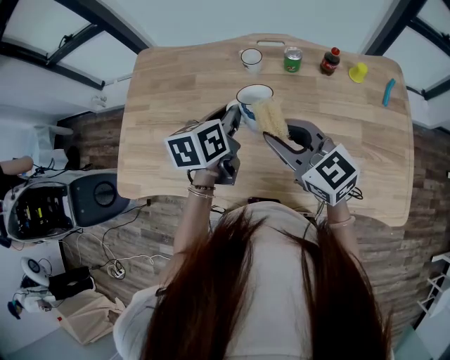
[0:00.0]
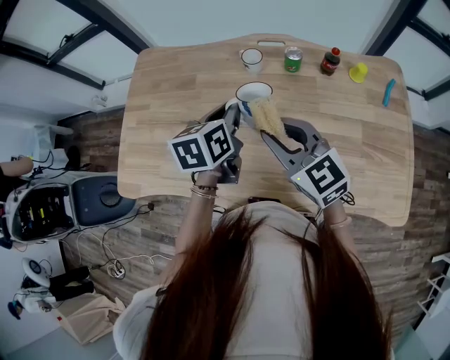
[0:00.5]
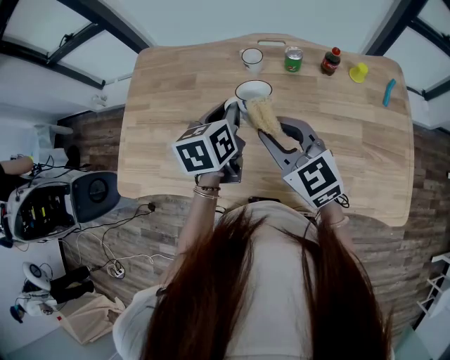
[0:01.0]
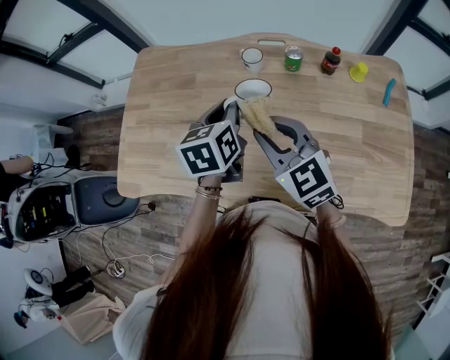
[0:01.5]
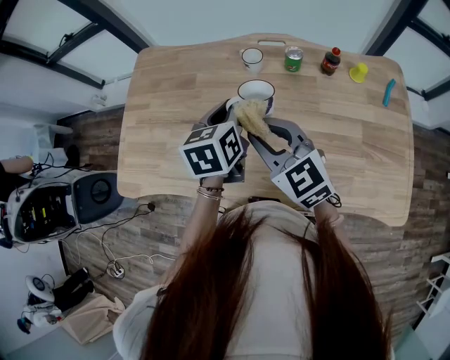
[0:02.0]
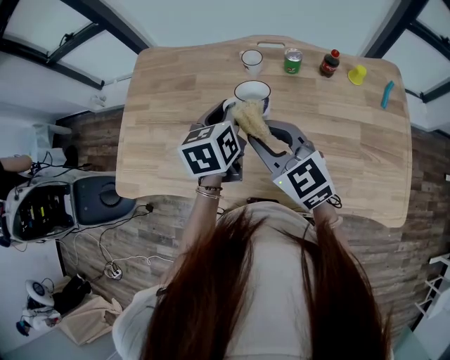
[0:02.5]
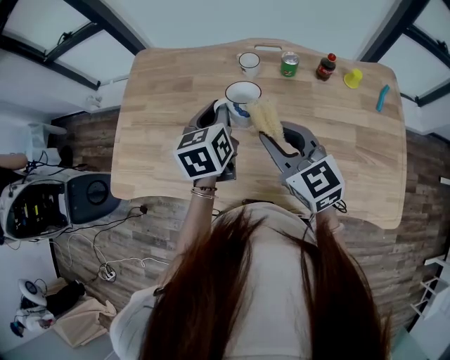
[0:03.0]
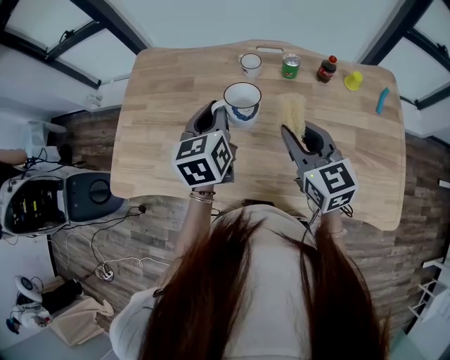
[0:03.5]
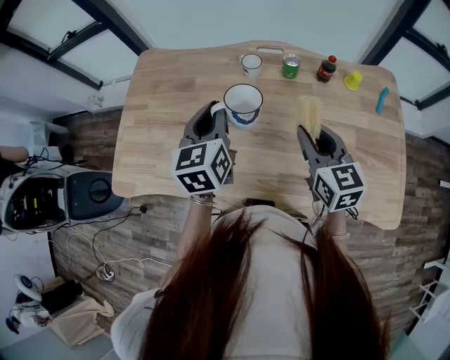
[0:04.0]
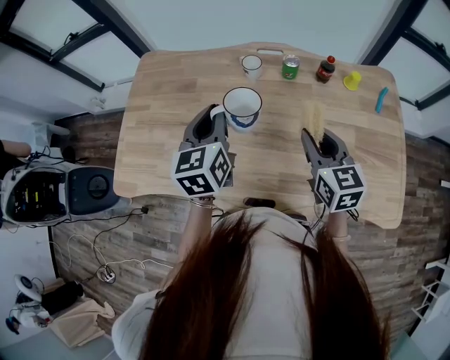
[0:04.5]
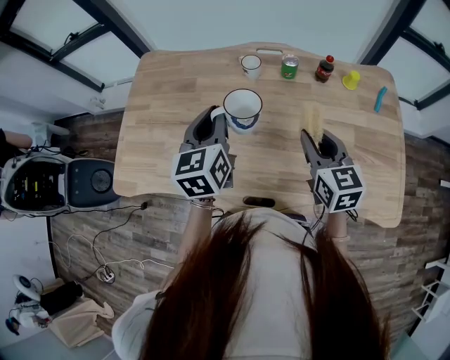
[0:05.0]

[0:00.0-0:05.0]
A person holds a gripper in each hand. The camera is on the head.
0:00.0 to 0:02.5: The grippers stay close to where they were, moving slightly.
0:02.5 to 0:05.0: The right gripper heads to the right, covering some 15 cm, and changes its angle by some 30 degrees, while the left gripper moves some 5 cm.

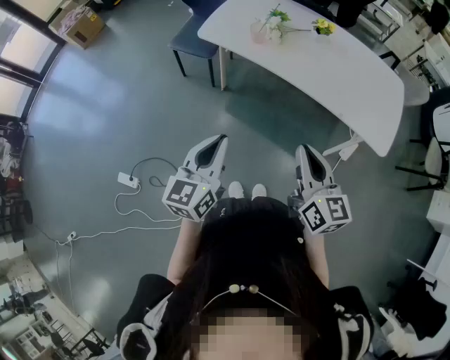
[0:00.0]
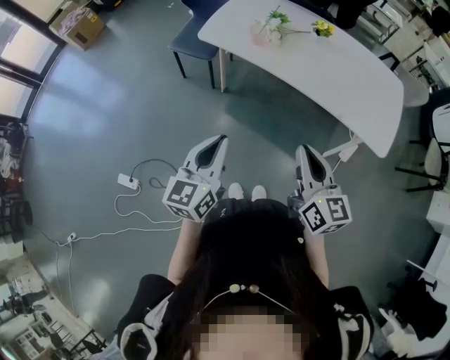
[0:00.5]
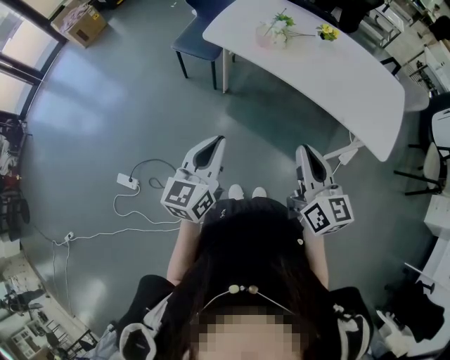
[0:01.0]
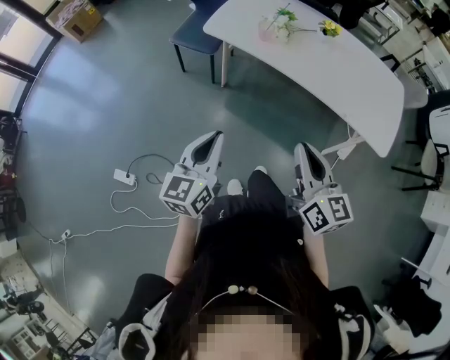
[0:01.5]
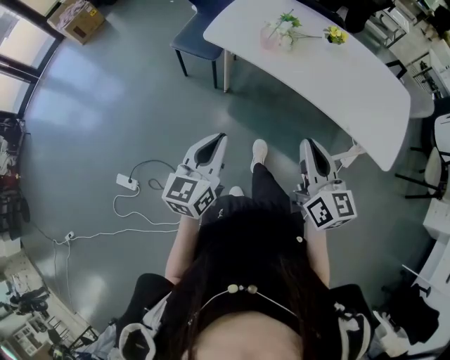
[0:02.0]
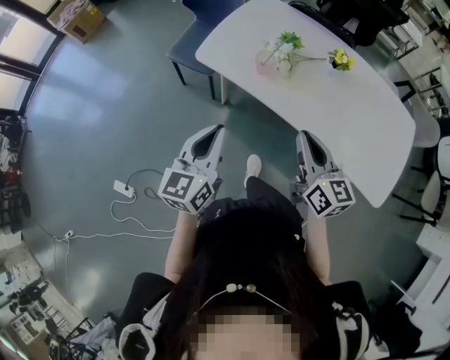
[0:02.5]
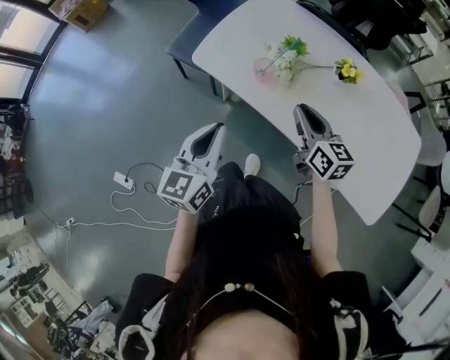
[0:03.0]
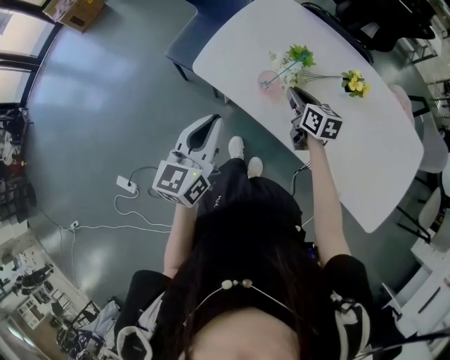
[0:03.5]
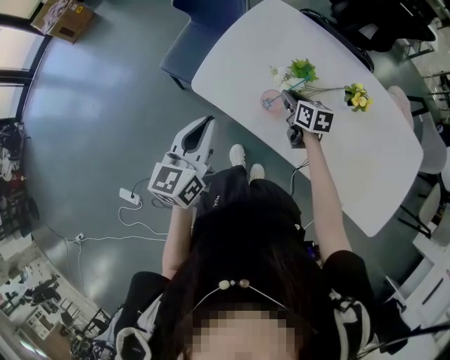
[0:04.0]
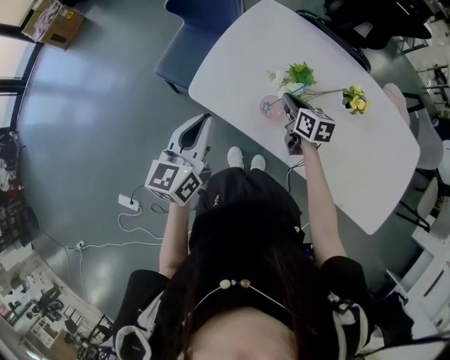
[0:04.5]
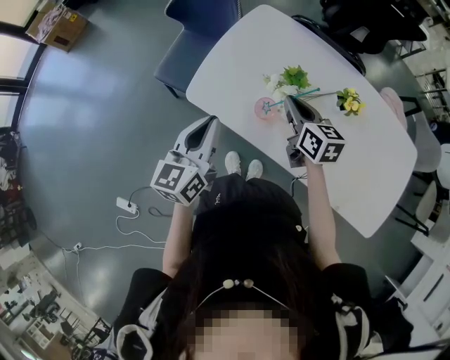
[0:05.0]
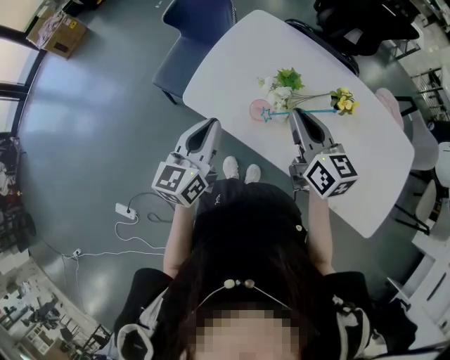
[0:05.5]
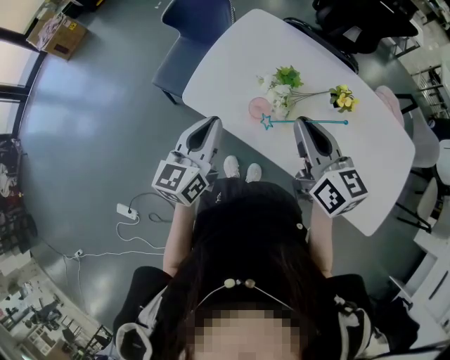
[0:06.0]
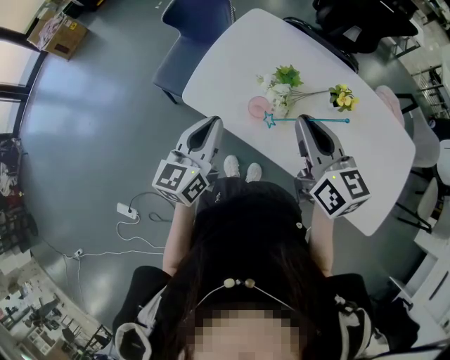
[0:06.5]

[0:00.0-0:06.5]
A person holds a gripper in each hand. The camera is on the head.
0:00.0 to 0:02.0: Both grippers move forward, some 5 cm.
0:02.0 to 0:04.5: The two grippers travel together, forward, some 50 cm. The right gripper moves downward, roughly 20 cm, and turns by roughly 30 degrees.
0:04.5 to 0:06.5: The left gripper heads to the right, covering approximately 5 cm. Meanwhile the right gripper moves upward and backward, about 25 cm, and rotates some 20 degrees.

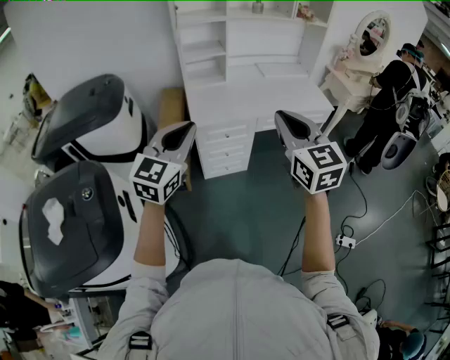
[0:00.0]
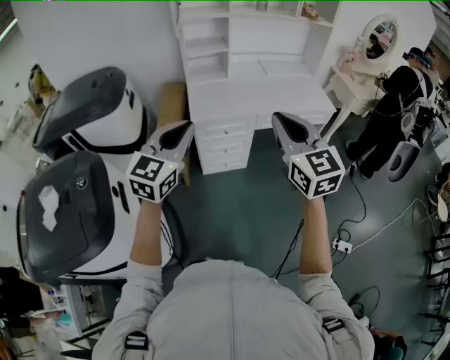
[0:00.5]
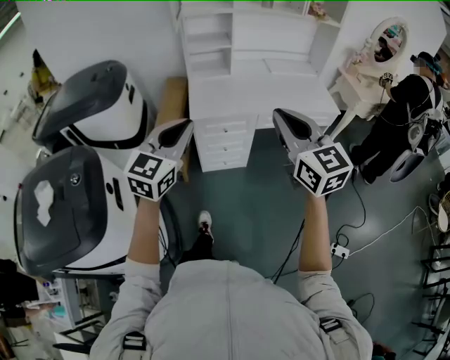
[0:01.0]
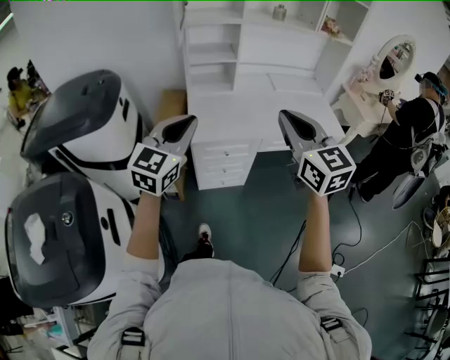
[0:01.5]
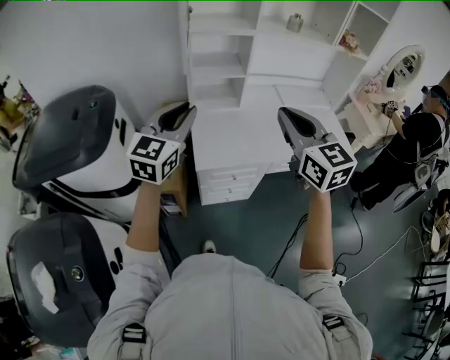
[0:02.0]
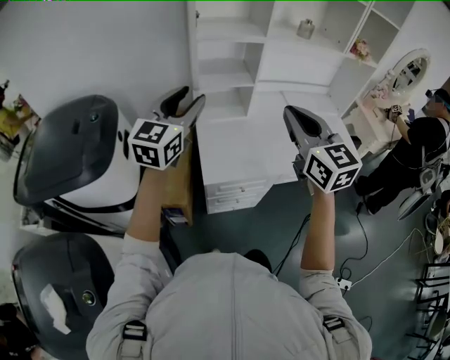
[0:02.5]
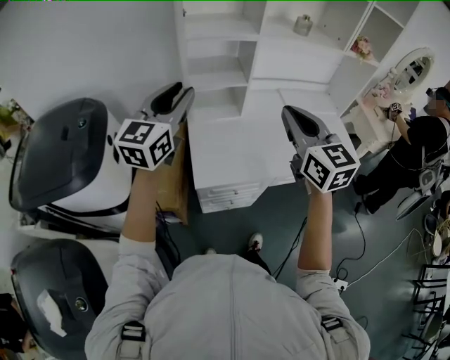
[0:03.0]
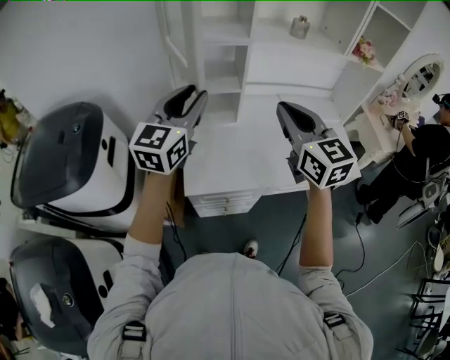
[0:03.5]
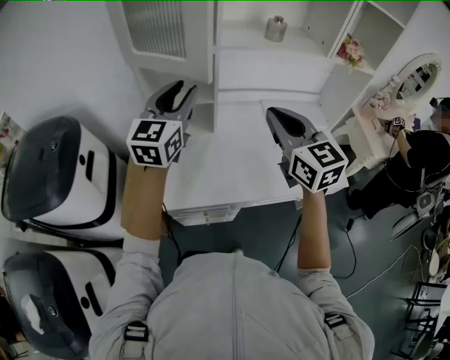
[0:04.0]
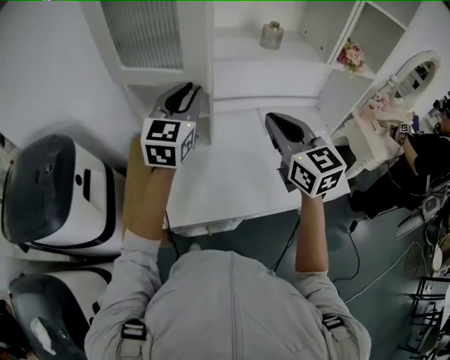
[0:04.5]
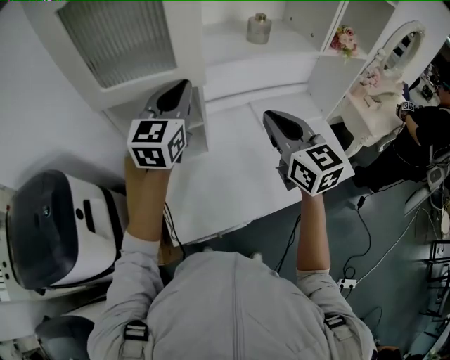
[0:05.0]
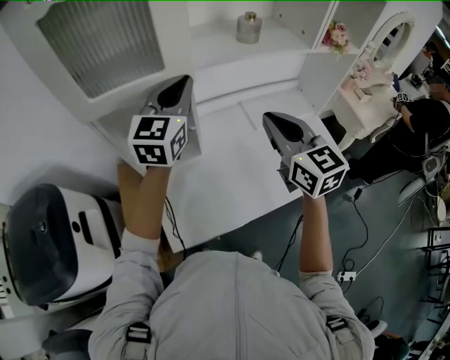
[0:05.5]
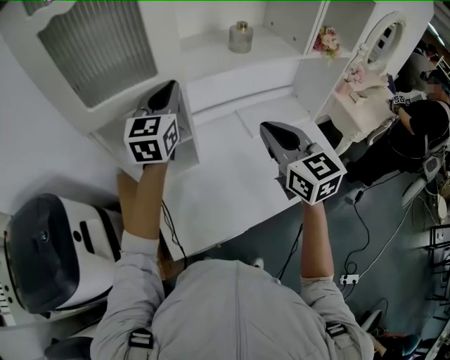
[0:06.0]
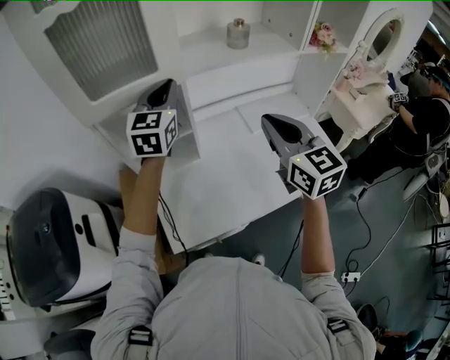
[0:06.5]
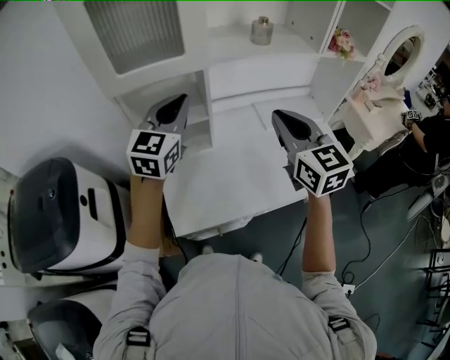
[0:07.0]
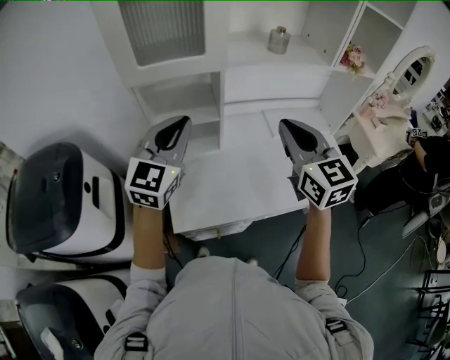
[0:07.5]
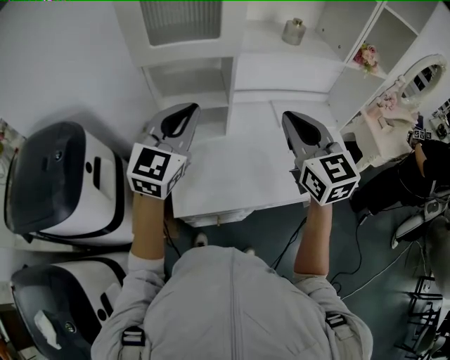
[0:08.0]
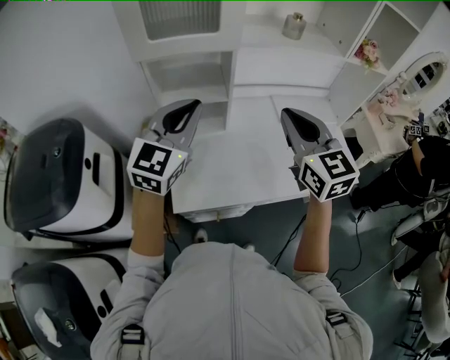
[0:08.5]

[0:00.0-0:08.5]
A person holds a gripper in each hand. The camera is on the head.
0:00.0 to 0:02.0: The grippers both shift forward by some 30 cm.
0:02.0 to 0:04.0: Both grippers travel together forward and to the right, some 25 cm.
0:04.0 to 0:06.5: The left gripper shifts some 20 cm forward, and closes its fingers, while the right gripper shifts approximately 10 cm forward.
0:06.5 to 0:08.5: The right gripper is displaced backward and to the left by roughly 10 cm. Meanwhile the left gripper goes roughly 20 cm backward.

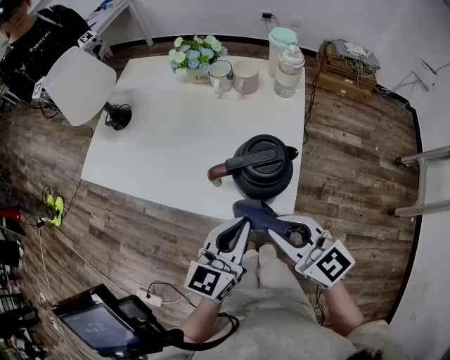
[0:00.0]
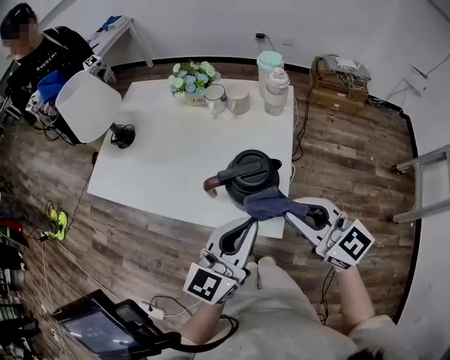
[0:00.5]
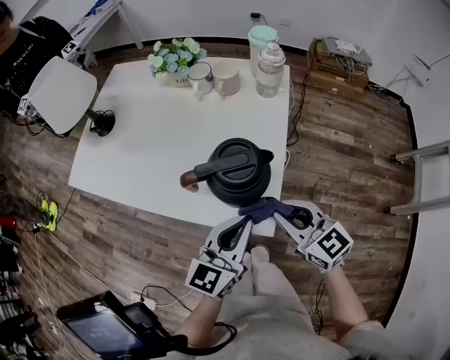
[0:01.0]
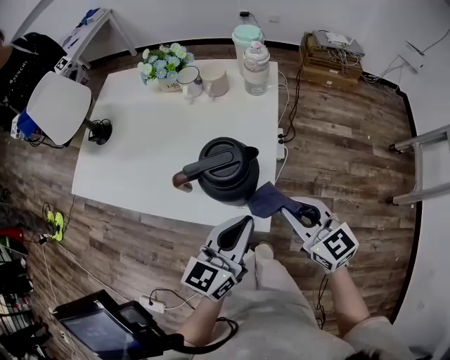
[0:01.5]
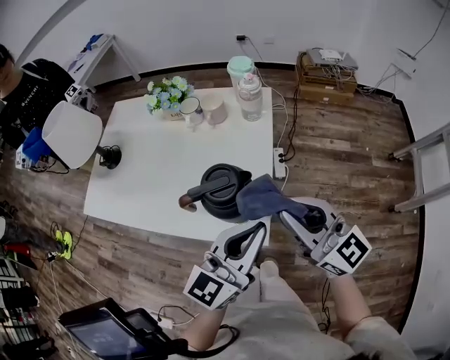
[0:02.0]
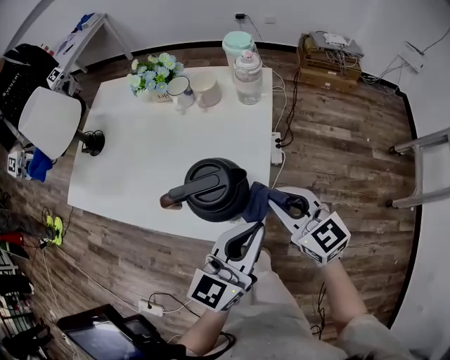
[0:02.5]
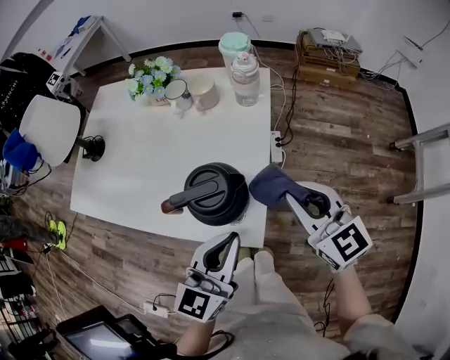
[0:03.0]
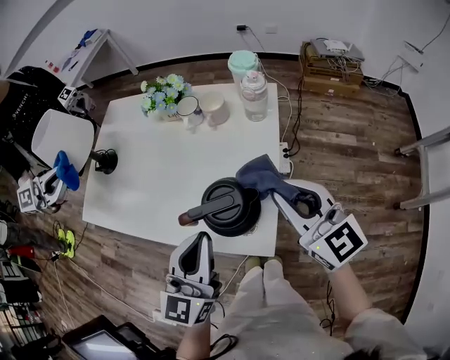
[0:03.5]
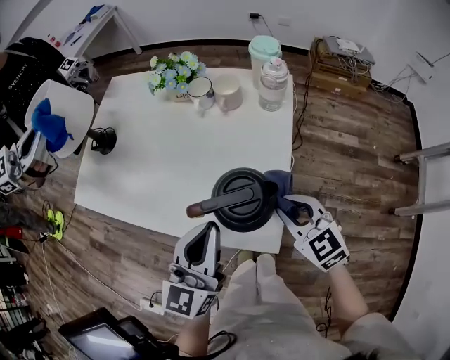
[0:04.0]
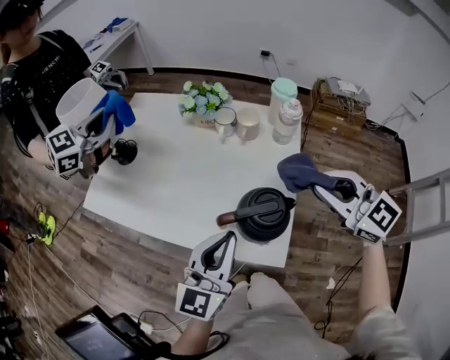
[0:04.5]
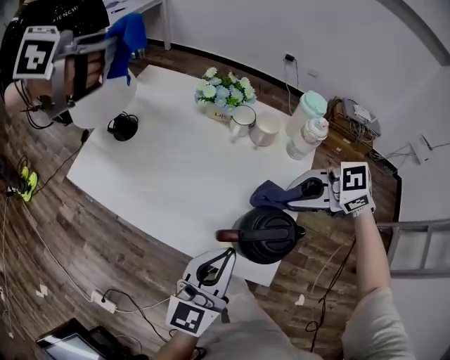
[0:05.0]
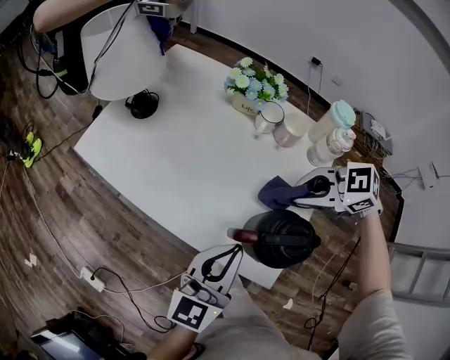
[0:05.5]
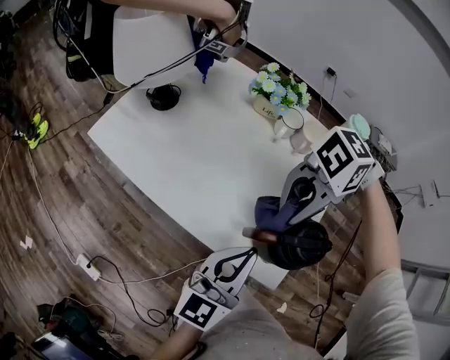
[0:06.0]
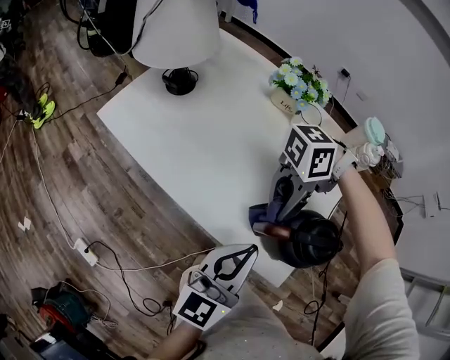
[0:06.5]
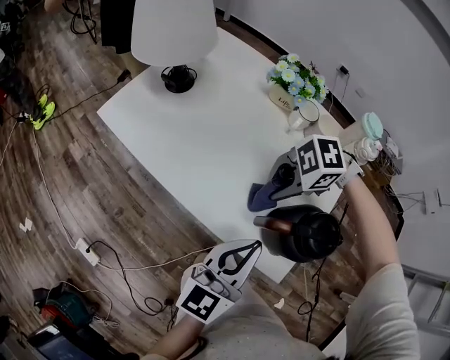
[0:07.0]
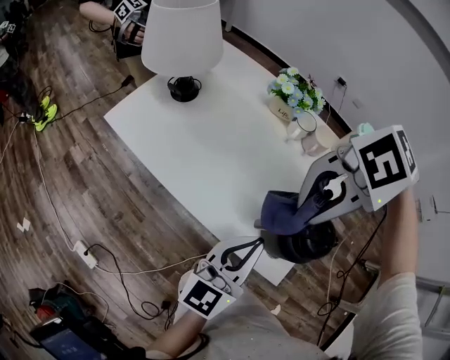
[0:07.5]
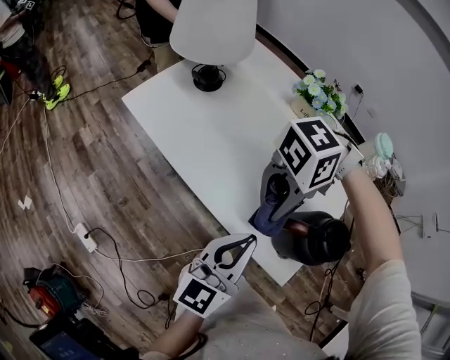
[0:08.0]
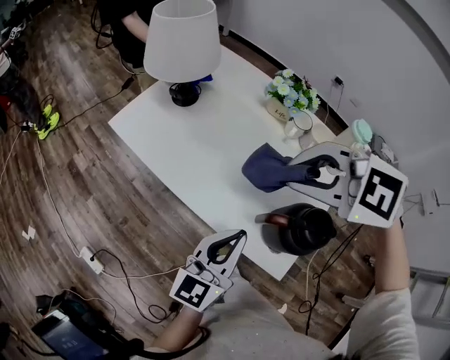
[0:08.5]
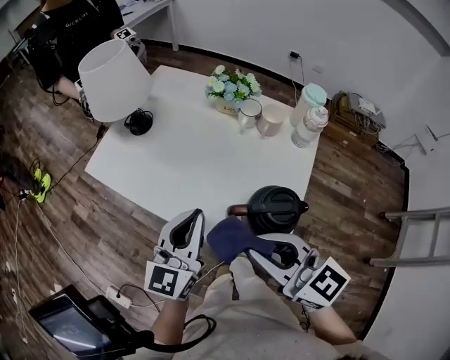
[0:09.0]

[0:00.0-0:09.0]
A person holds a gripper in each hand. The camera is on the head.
0:00.0 to 0:02.0: The right gripper moves up and down over approximately 15 cm, changing direction 2 times. Meanwhile the left gripper moves up and down over approximately 15 cm, changing direction 2 times.
0:02.0 to 0:04.5: The left gripper goes roughly 15 cm to the left, and rotates approximately 20 degrees, while the right gripper goes up and down, some 15 cm each way, reversing 3 times, and rotates about 30 degrees.
0:04.5 to 0:07.0: The right gripper moves up and down over approximately 20 cm, changing direction 2 times, and tips its fingers downward by about 40 degrees. Meanwhile the left gripper changes place by approximately 5 cm.
0:07.0 to 0:09.0: The left gripper changes place by about 10 cm, while the right gripper goes up and down, some 20 cm each way, reversing 2 times, and tips its fingers upward by some 40 degrees.
